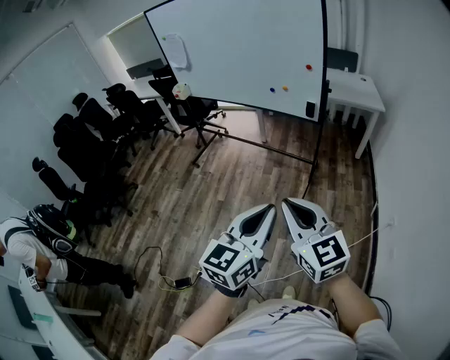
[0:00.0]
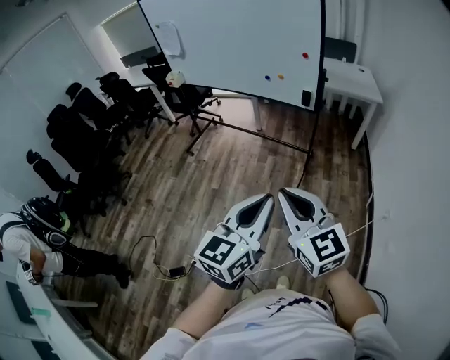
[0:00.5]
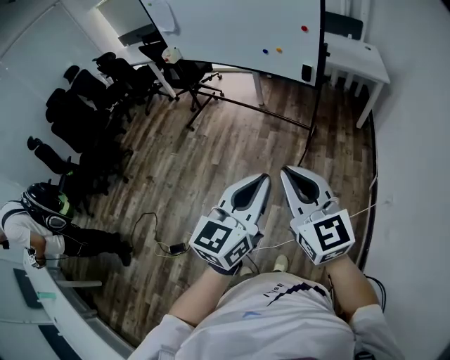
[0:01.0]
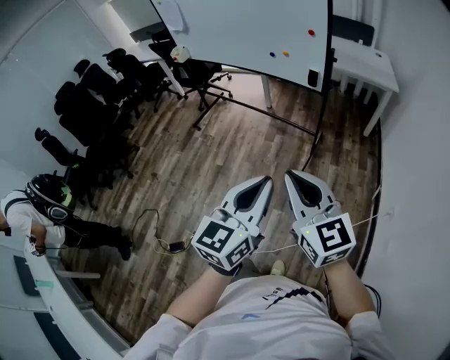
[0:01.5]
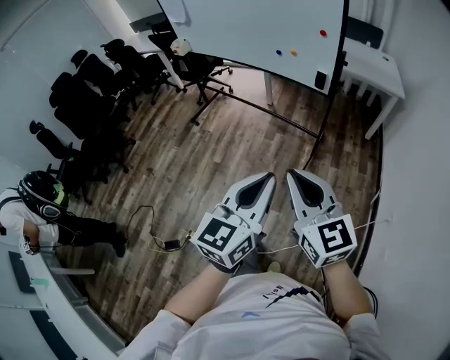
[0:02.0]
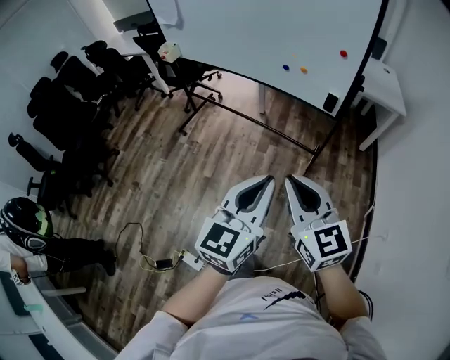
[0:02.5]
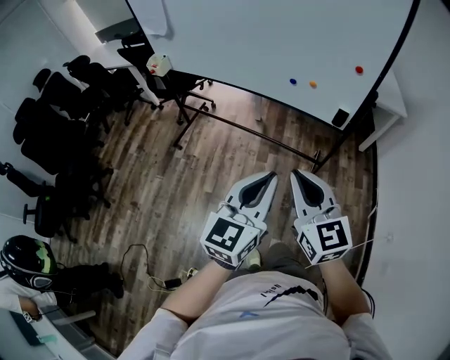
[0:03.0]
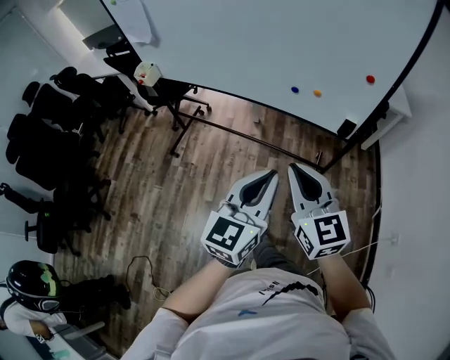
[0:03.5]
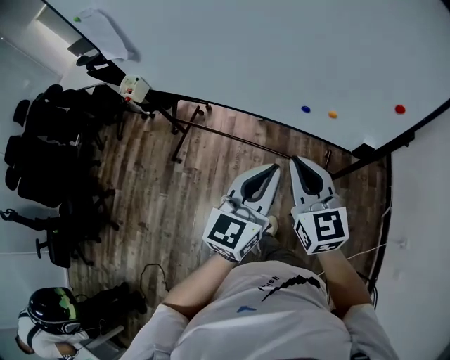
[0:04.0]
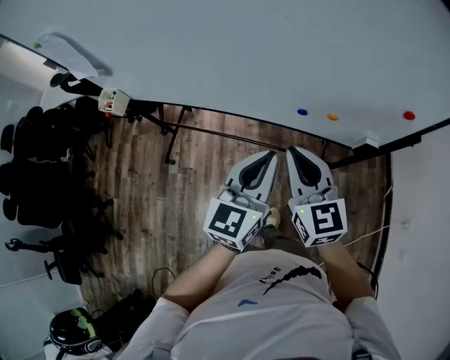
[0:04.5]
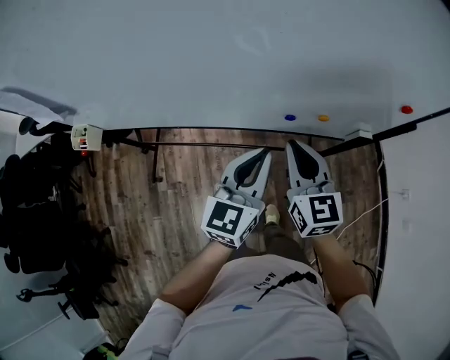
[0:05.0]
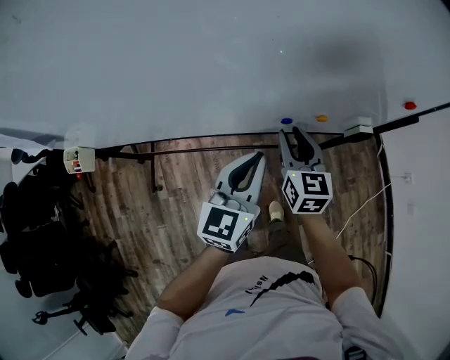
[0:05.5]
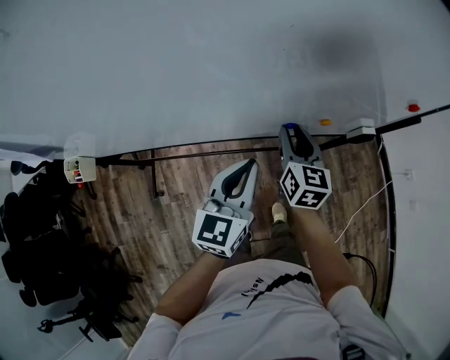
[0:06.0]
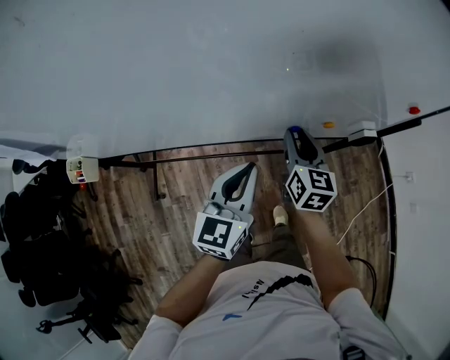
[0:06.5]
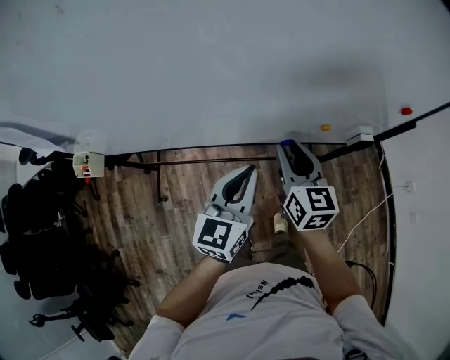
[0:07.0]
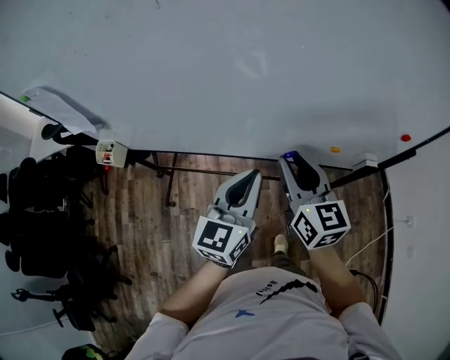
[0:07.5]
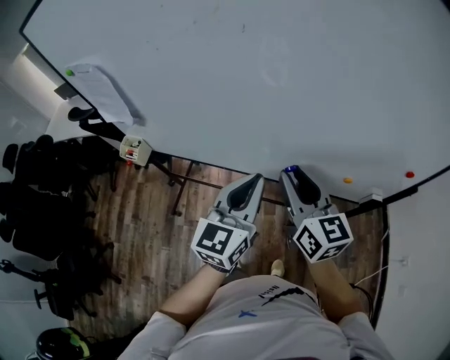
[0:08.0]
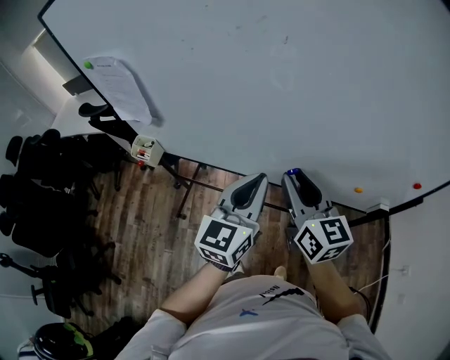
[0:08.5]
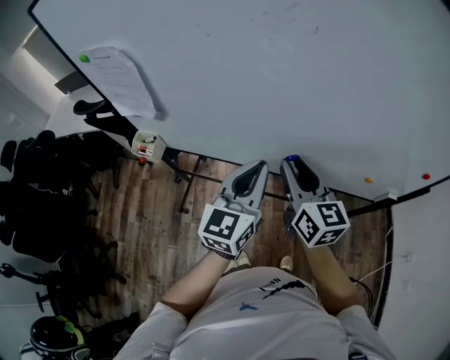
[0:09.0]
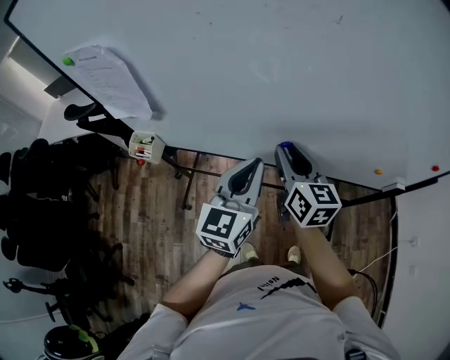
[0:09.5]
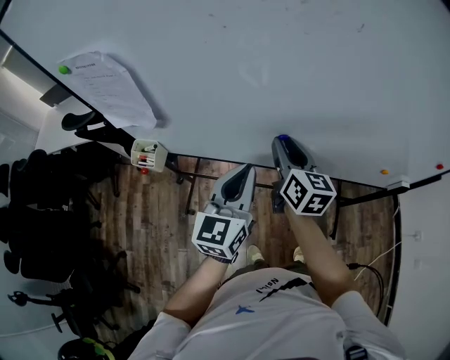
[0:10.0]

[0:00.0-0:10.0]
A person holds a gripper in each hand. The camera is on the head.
0:00.0 to 0:02.0: The right gripper heads forward and to the right, covering roughly 10 cm. The left gripper travels forward by approximately 10 cm.
0:02.0 to 0:04.0: The two grippers travel together, forward, approximately 60 cm.
0:04.0 to 0:06.0: The left gripper moves some 20 cm, and swivels approximately 20 degrees. Meanwhile the right gripper shifts by approximately 25 cm, swivels some 40 degrees, and opens up.
0:06.0 to 0:08.0: The left gripper travels upward and to the left by about 20 cm, while the right gripper goes some 25 cm upward, to the left and backward, and changes its angle by about 40 degrees.
0:08.0 to 0:10.0: The left gripper shifts approximately 15 cm to the left. Meanwhile the right gripper heads to the left, forward and downward, covering some 20 cm.

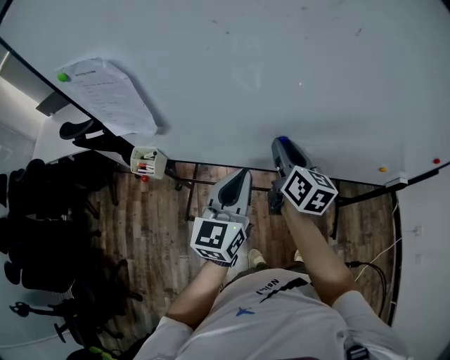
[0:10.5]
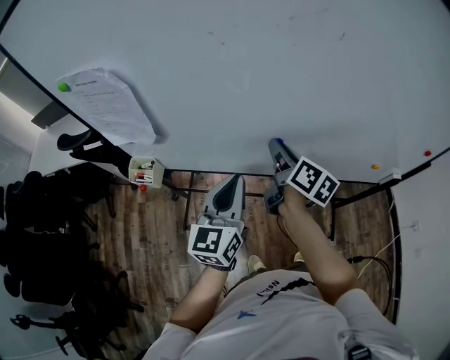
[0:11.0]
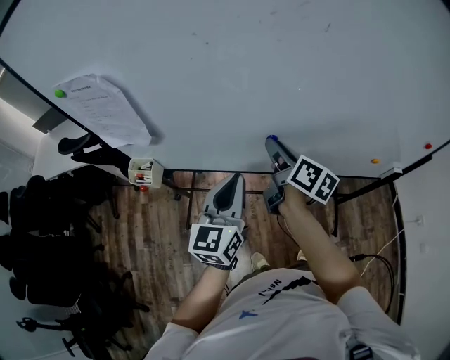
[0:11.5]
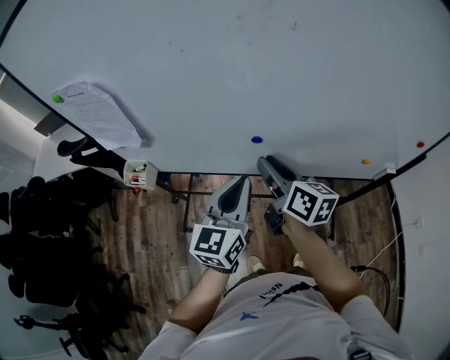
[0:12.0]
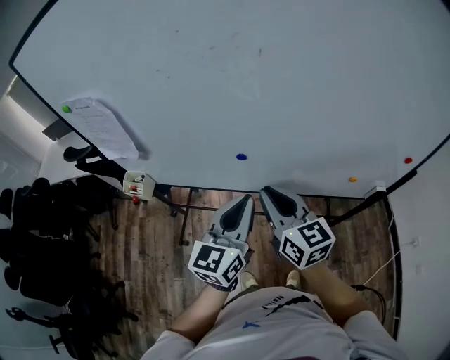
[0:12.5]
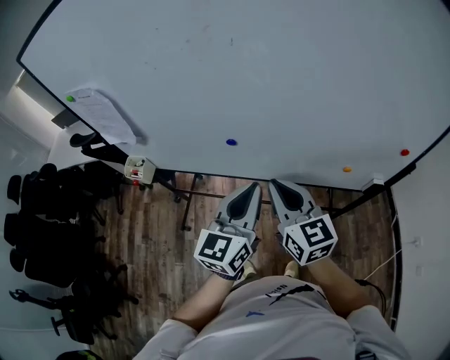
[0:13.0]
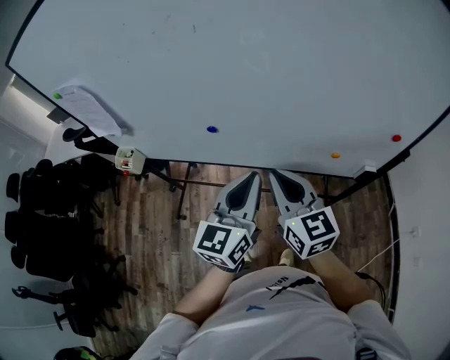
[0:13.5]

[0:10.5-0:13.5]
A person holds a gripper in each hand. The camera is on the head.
0:10.5 to 0:12.0: The left gripper shifts some 5 cm to the right; the right gripper travels backward by approximately 5 cm.
0:12.0 to 0:13.5: The left gripper goes some 15 cm to the right. The right gripper heads to the right and backward, covering roughly 20 cm, changes its angle by about 30 degrees, and closes.

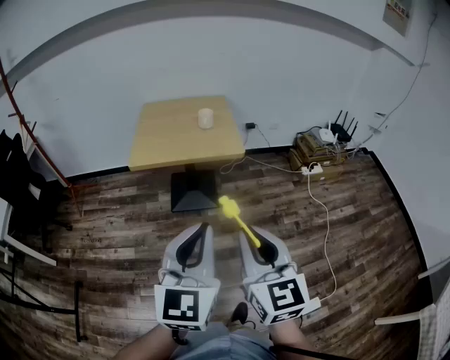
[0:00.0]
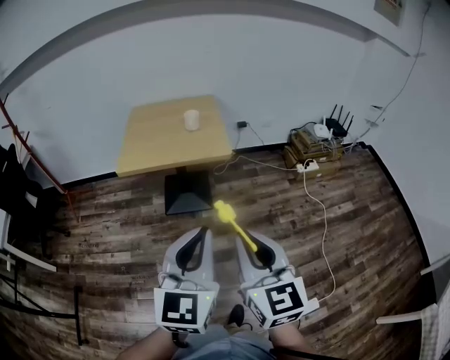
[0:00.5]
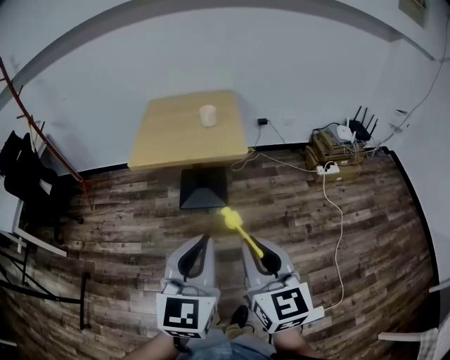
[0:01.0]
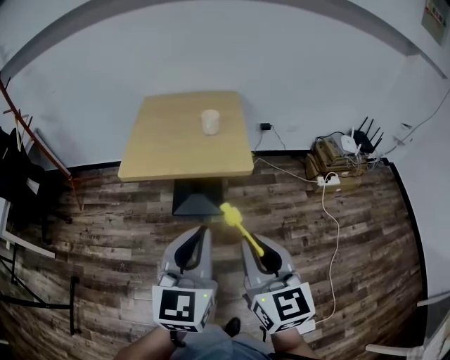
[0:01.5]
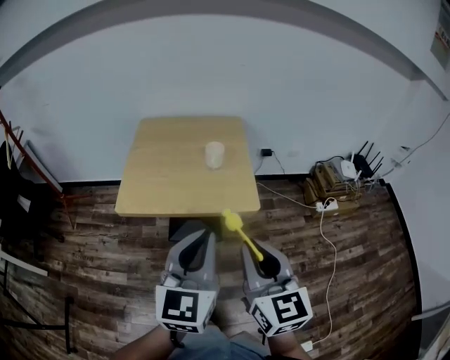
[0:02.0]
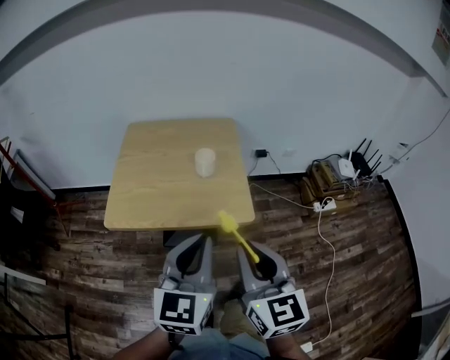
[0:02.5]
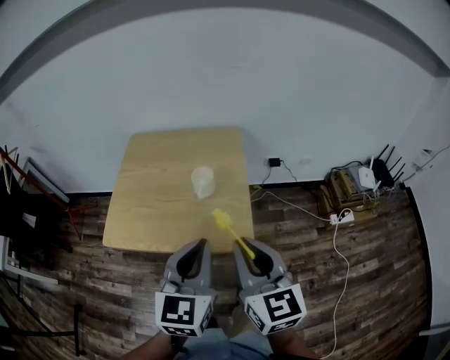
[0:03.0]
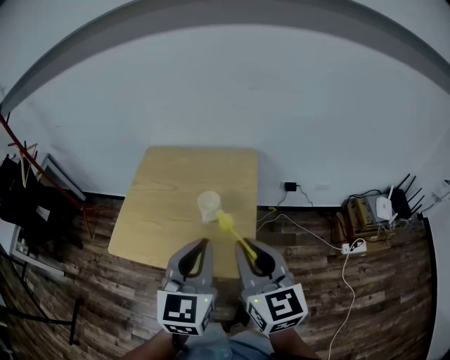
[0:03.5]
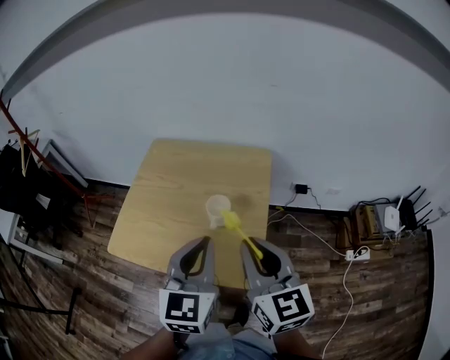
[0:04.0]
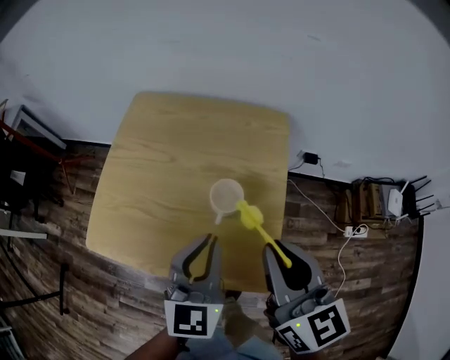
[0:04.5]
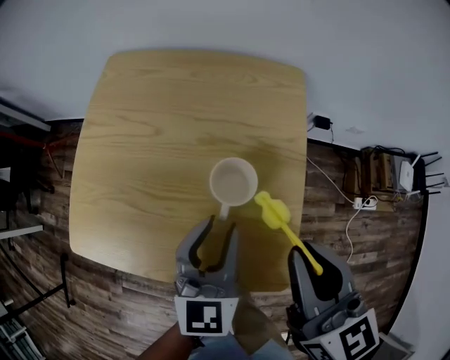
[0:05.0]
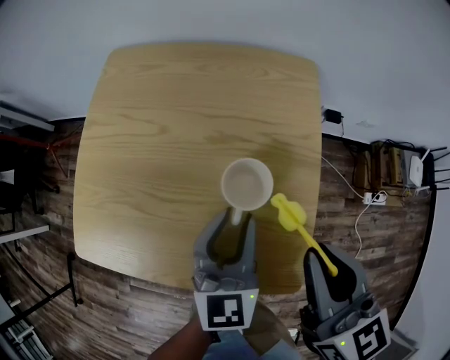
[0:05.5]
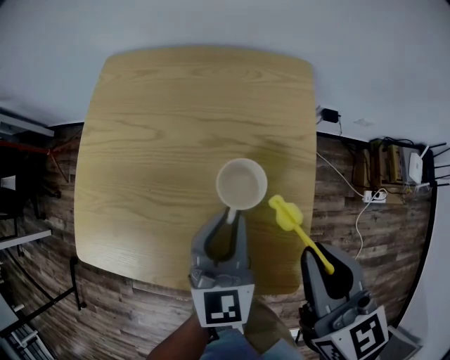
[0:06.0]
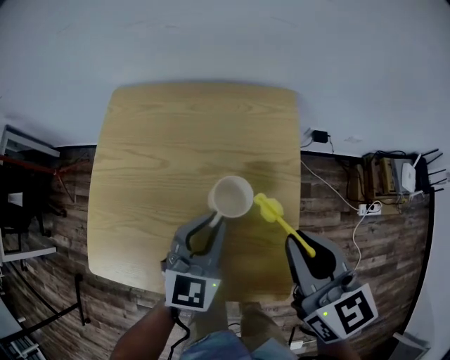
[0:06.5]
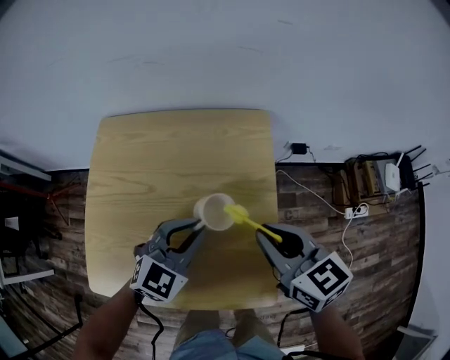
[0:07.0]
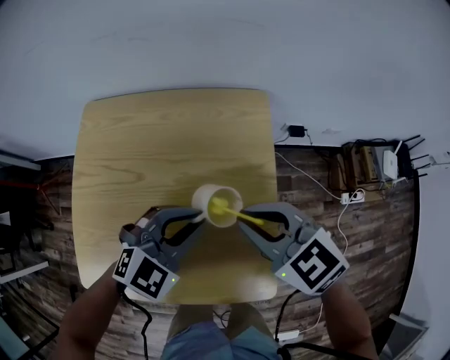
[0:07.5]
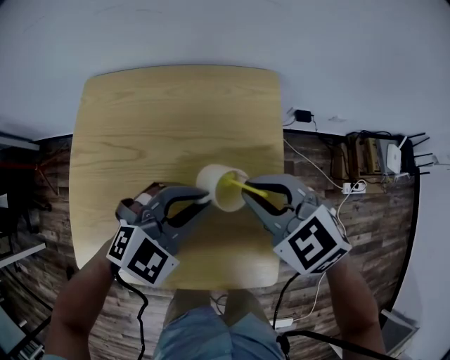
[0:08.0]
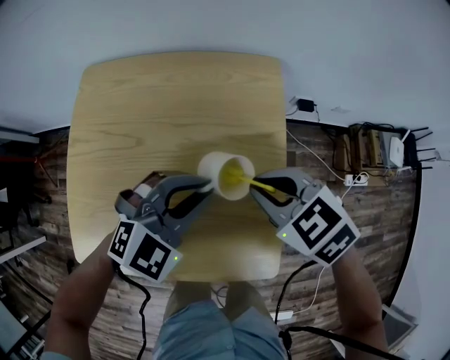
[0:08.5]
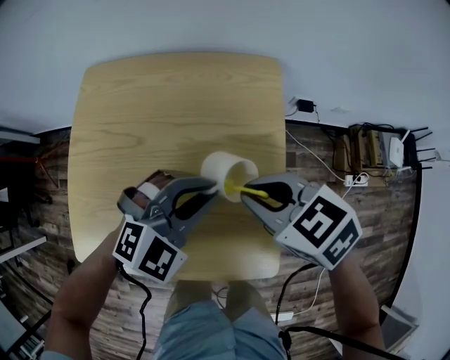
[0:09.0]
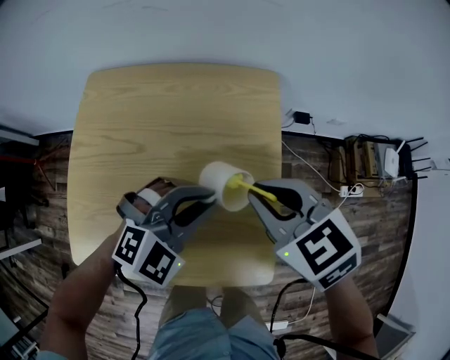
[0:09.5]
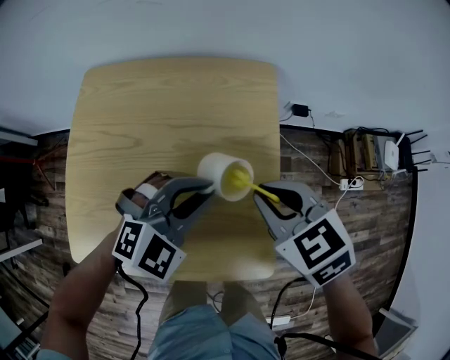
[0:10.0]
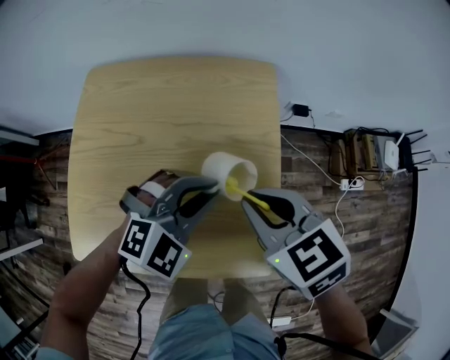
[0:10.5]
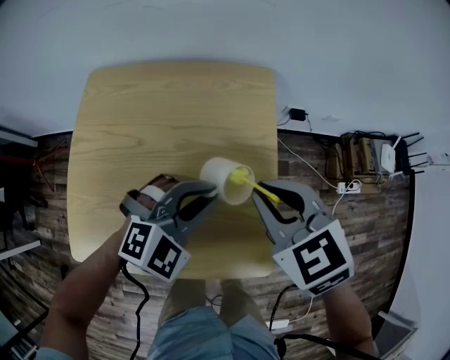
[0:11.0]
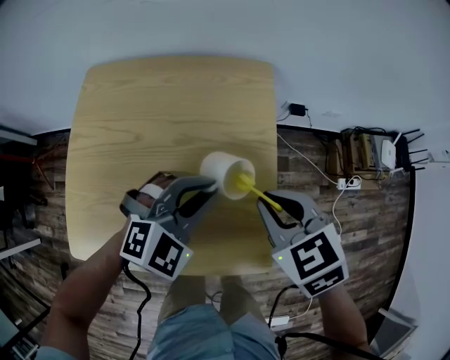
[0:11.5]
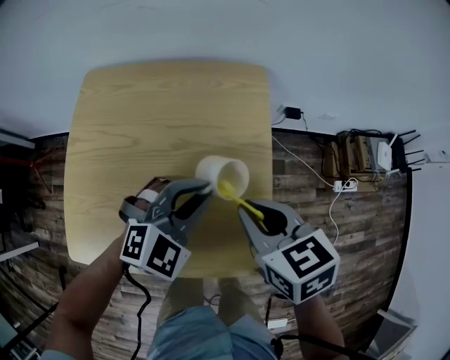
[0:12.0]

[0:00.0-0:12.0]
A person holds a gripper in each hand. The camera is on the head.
0:00.0 to 0:02.0: Both grippers travel together forward, some 30 cm.
0:02.0 to 0:04.0: Both grippers move forward, approximately 30 cm.
0:04.0 to 0:06.0: The left gripper shifts some 25 cm downward and forward, while the right gripper travels downward and forward by roughly 15 cm, and turns by about 20 degrees.
0:06.0 to 0:08.0: The right gripper heads forward, covering some 10 cm, and changes its angle by approximately 50 degrees, while the left gripper turns by some 60 degrees.
0:10.0 to 0:12.0: The right gripper changes its angle by some 20 degrees.

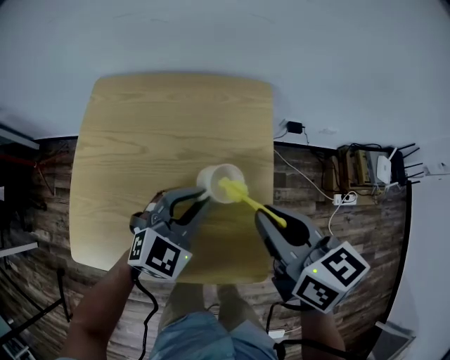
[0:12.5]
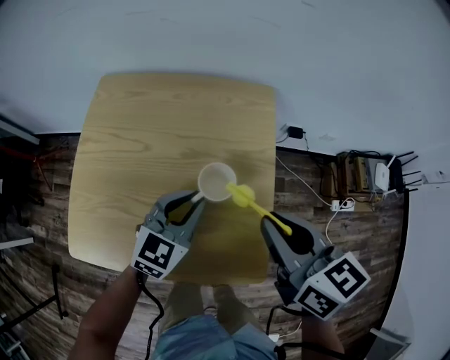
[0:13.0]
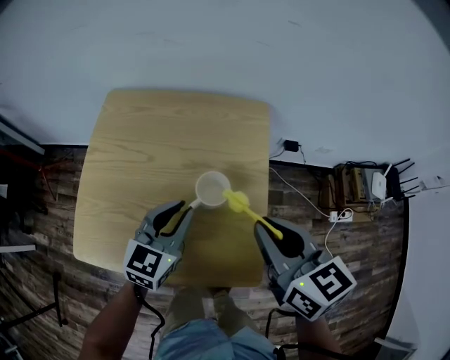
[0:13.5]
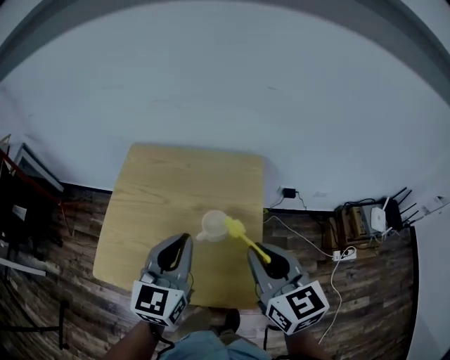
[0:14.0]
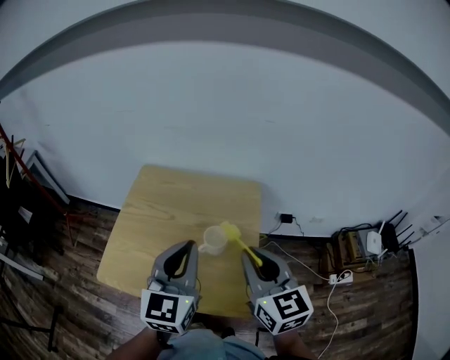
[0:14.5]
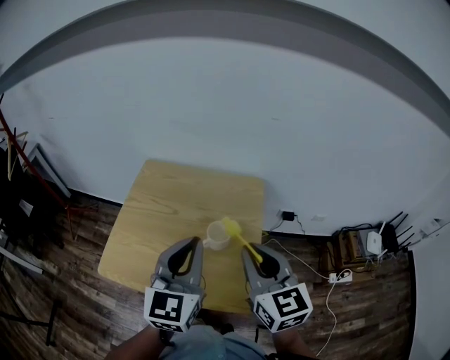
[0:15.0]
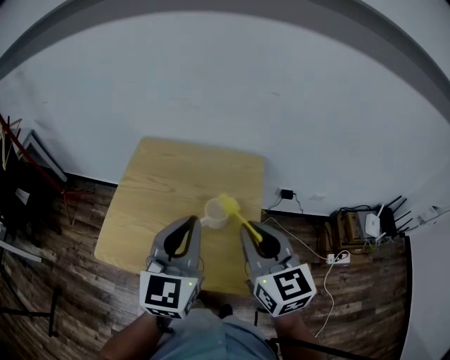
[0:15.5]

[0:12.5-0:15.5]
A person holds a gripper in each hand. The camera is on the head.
0:12.5 to 0:14.0: The right gripper shifts approximately 5 cm upward, and turns by some 20 degrees. Meanwhile the left gripper shifts approximately 15 cm upward, and swivels approximately 40 degrees.
0:14.0 to 0:15.5: The left gripper heads upward, covering approximately 5 cm.
